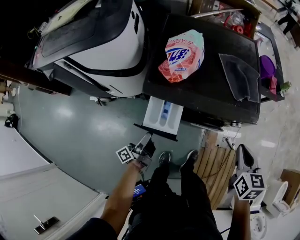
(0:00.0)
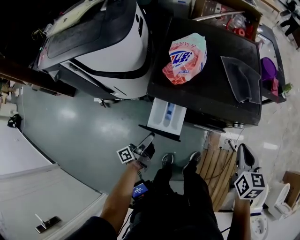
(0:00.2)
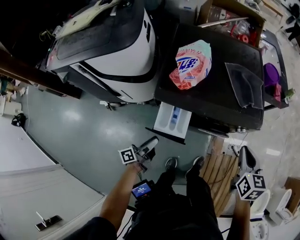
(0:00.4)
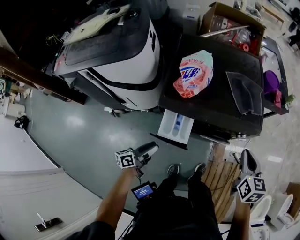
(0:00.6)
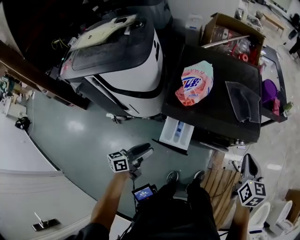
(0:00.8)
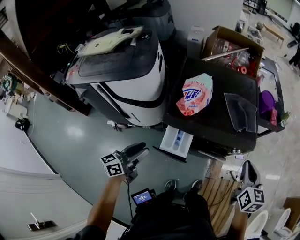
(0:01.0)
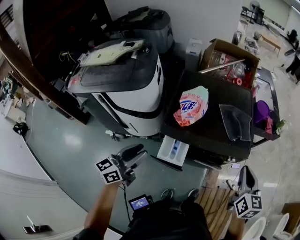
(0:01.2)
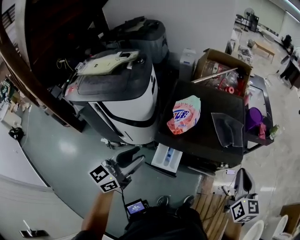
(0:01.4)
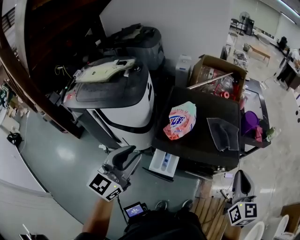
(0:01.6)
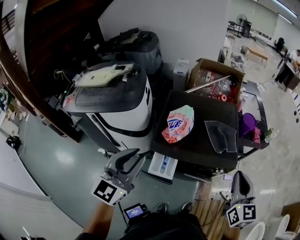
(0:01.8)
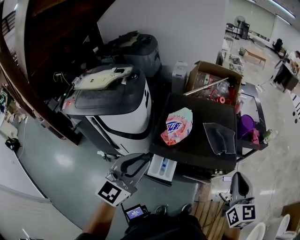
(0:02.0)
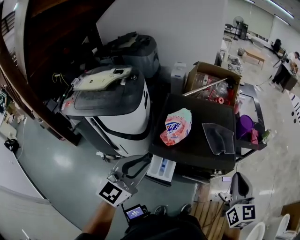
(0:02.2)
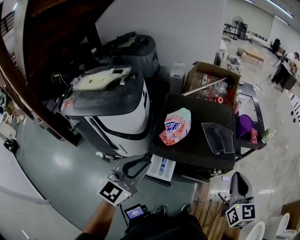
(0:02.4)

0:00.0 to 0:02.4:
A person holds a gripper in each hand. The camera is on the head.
0:00.0 to 0:01.2: The left gripper is displaced upward by some 30 cm, and rotates around the line of its fingers by some 60 degrees, clockwise from behind. Meanwhile the right gripper goes about 15 cm upward.
0:01.2 to 0:02.4: The left gripper moves upward and to the right, some 15 cm, and turns by about 40 degrees. The right gripper is displaced upward by about 10 cm.

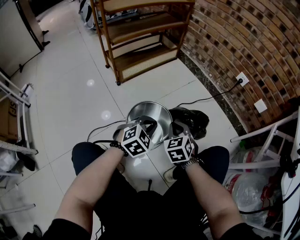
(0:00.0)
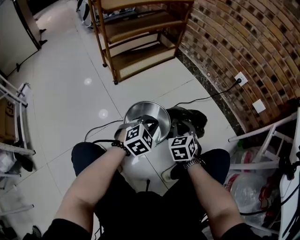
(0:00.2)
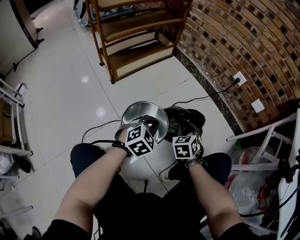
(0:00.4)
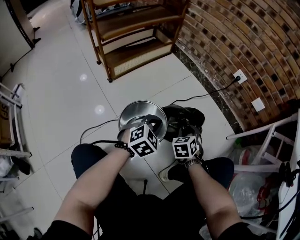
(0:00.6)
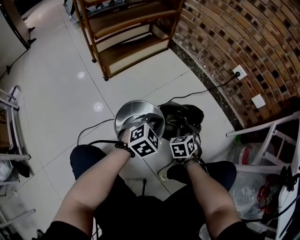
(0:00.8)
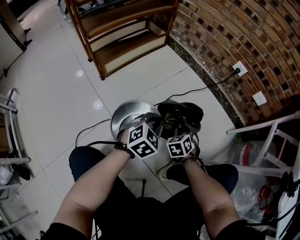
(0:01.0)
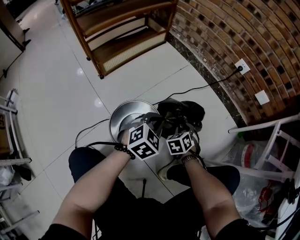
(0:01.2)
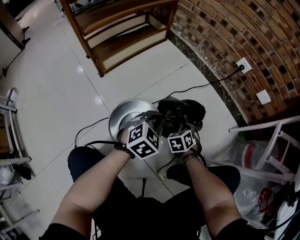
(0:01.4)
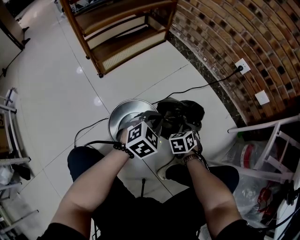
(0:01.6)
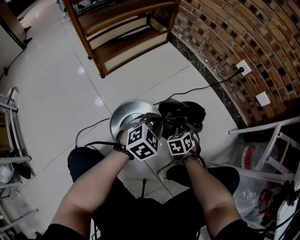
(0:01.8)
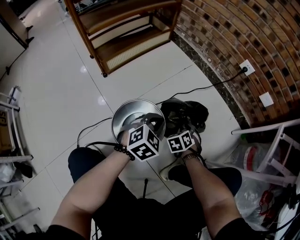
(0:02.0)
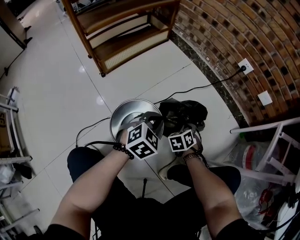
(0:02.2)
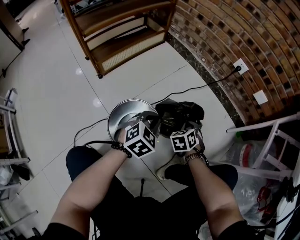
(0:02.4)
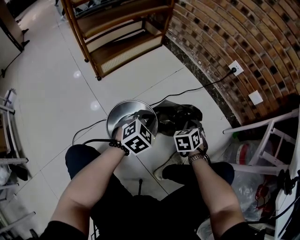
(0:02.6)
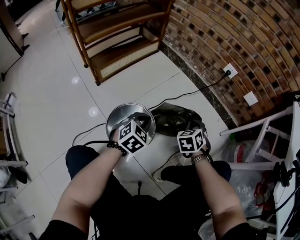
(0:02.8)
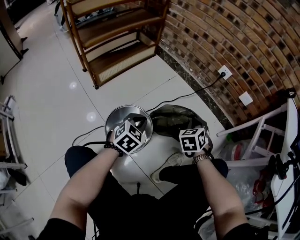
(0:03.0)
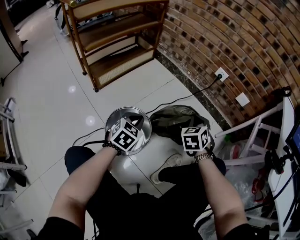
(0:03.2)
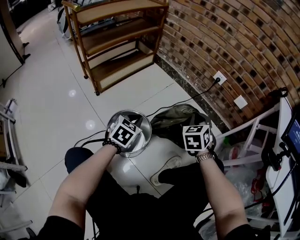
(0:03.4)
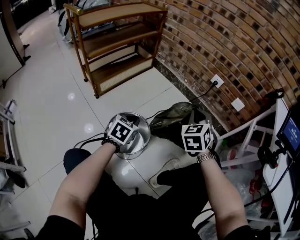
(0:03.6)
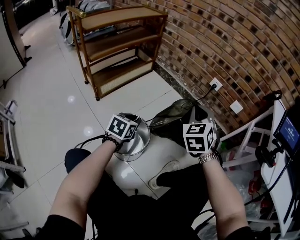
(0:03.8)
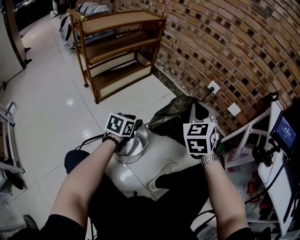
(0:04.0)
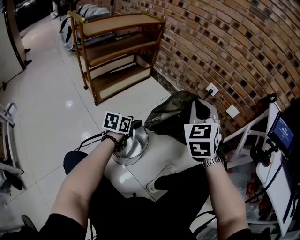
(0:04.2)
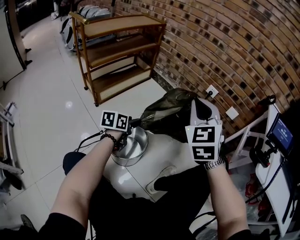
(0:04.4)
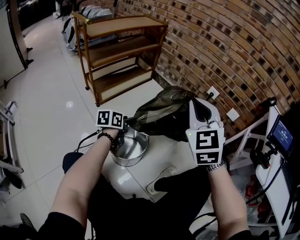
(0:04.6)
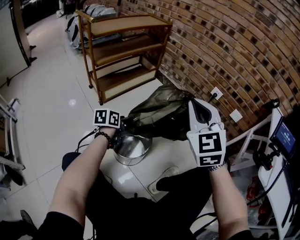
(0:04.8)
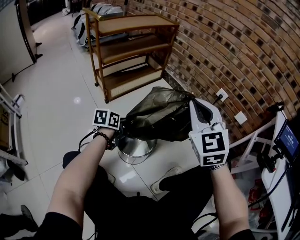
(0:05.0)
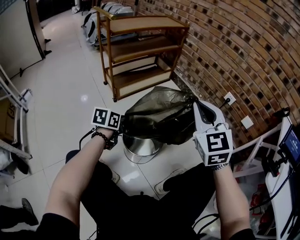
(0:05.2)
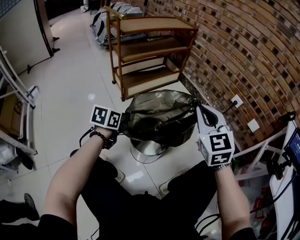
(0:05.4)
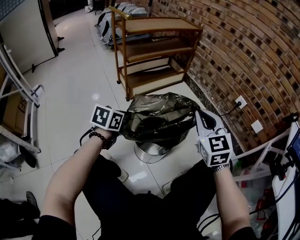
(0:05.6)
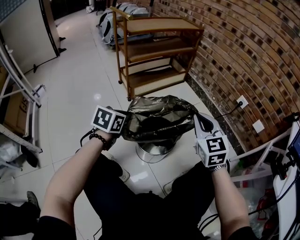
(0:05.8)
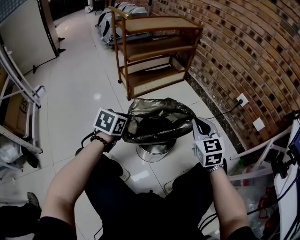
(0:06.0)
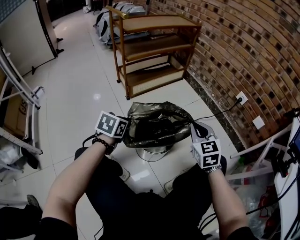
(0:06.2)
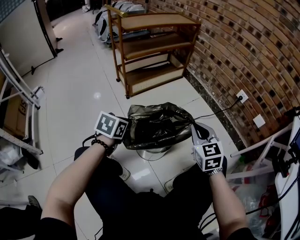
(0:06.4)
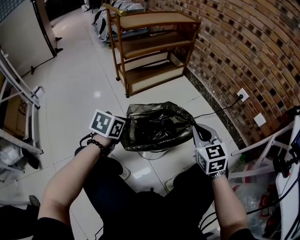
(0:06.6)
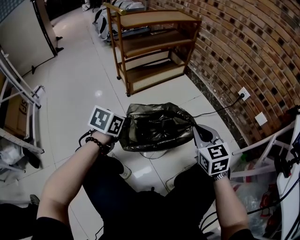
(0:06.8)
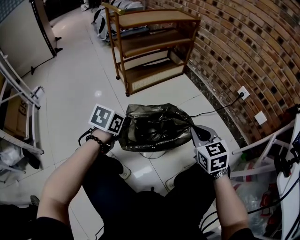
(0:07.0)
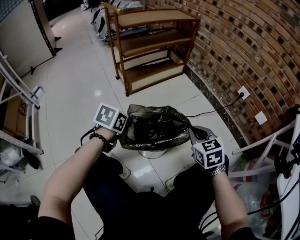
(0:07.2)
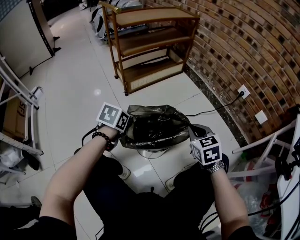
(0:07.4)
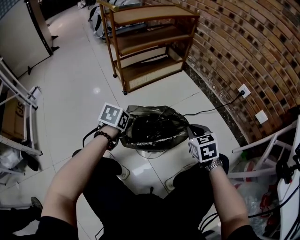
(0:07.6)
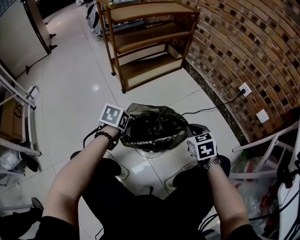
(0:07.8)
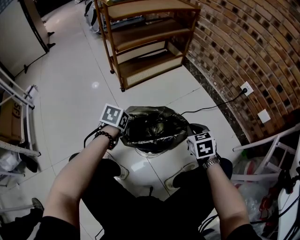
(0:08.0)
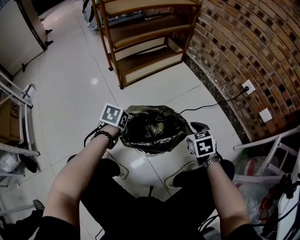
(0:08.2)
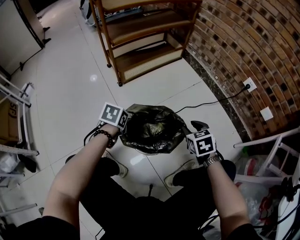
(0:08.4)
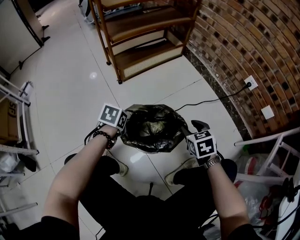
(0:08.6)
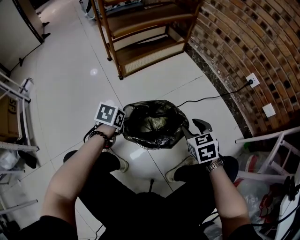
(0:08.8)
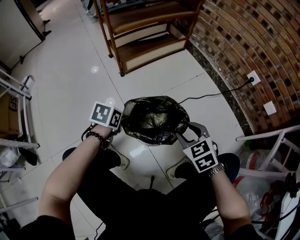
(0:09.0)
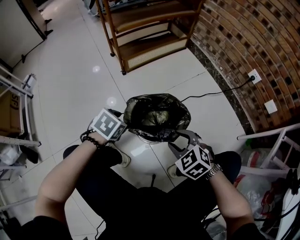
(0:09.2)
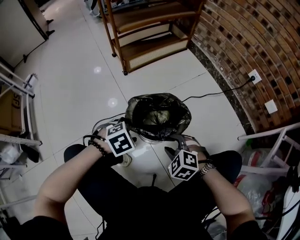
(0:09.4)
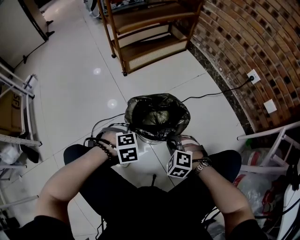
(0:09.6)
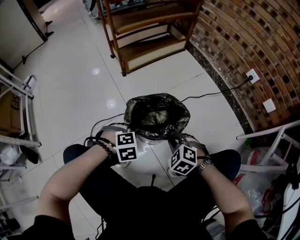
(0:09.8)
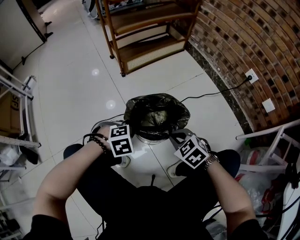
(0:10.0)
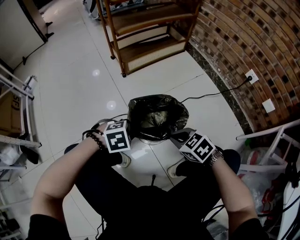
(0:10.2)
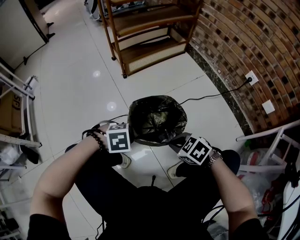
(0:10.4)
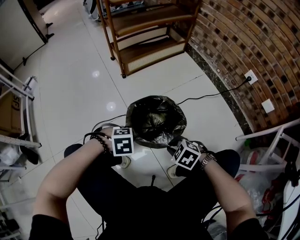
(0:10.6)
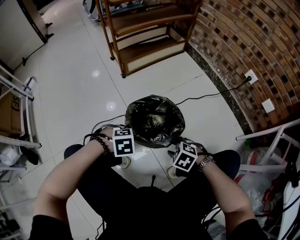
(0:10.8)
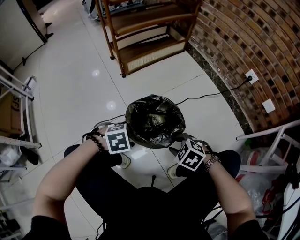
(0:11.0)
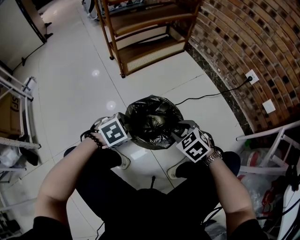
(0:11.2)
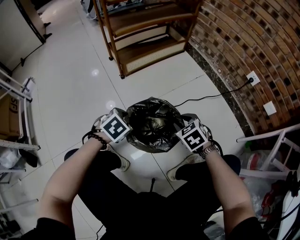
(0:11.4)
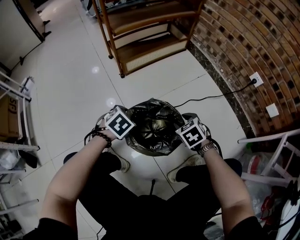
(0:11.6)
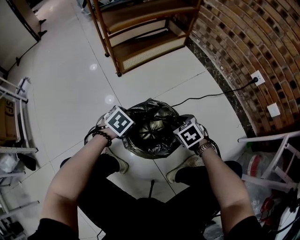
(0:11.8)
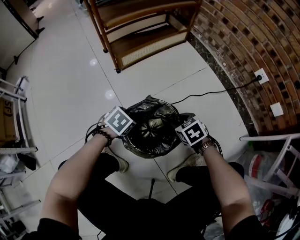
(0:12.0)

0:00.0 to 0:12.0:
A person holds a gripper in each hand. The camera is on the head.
0:00.0 to 0:01.6: The right gripper goes some 20 cm downward, forward and to the right, turns by some 30 degrees, and opens, then closes once more. The left gripper shifts about 10 cm forward.
0:01.6 to 0:03.0: The right gripper goes some 15 cm upward, and opens and closes again.
0:03.0 to 0:04.4: The right gripper goes about 30 cm upward, and changes its angle by roughly 30 degrees. Meanwhile the left gripper goes approximately 10 cm to the left and upward, twists about 50 degrees counterclockwise, seen from behind, and opens up.
0:04.4 to 0:06.0: The left gripper heads to the left and backward, covering some 20 cm, changes its angle by approximately 30 degrees, and closes, while the right gripper goes some 15 cm downward and to the left, and changes its angle by approximately 30 degrees.
0:06.0 to 0:07.6: The right gripper travels downward by approximately 10 cm, and swivels about 20 degrees, while the left gripper travels downward by roughly 5 cm.
0:07.6 to 0:09.0: The right gripper ends up about 5 cm from where it was, and opens up; the left gripper shifts roughly 5 cm downward, and opens its fingers.
0:09.0 to 0:10.4: The left gripper changes place by roughly 15 cm, rolls clockwise, seen from behind, by about 60 degrees, and closes its fingers; the right gripper shifts by approximately 10 cm, swivels some 30 degrees, and closes.
0:10.4 to 0:12.0: The right gripper moves up and down over roughly 10 cm, changing direction 2 times, swivels some 20 degrees, and opens. Meanwhile the left gripper moves up and down over some 10 cm, changing direction 2 times, changes its angle by approximately 40 degrees, and opens its fingers.

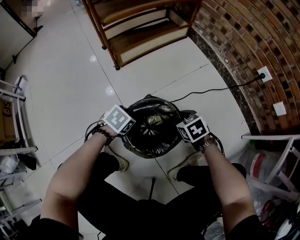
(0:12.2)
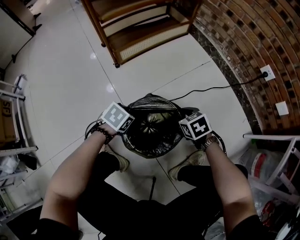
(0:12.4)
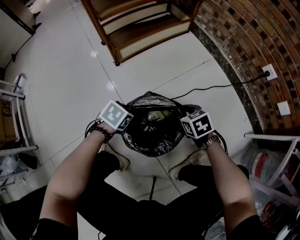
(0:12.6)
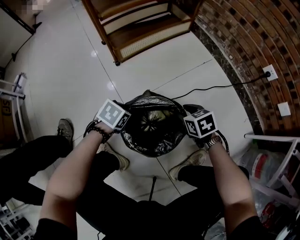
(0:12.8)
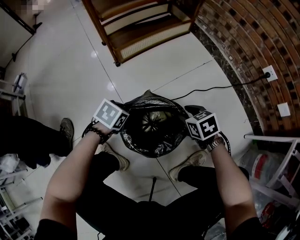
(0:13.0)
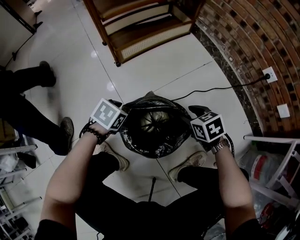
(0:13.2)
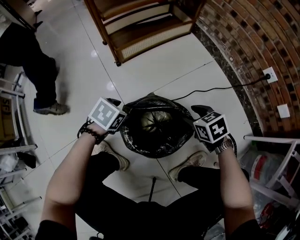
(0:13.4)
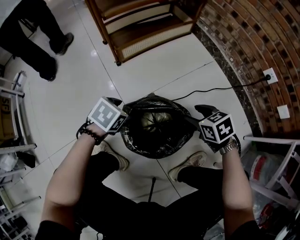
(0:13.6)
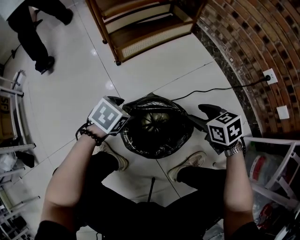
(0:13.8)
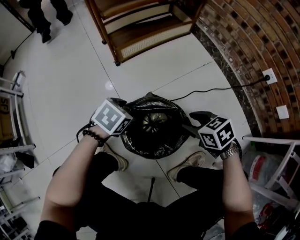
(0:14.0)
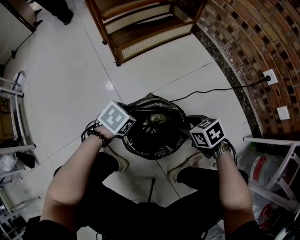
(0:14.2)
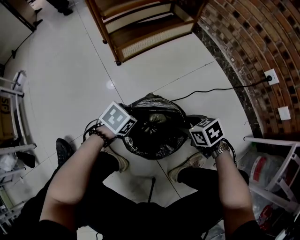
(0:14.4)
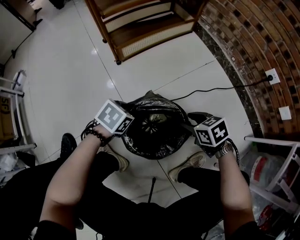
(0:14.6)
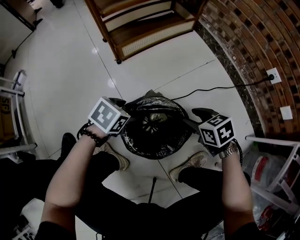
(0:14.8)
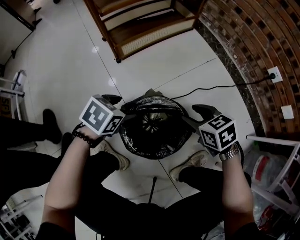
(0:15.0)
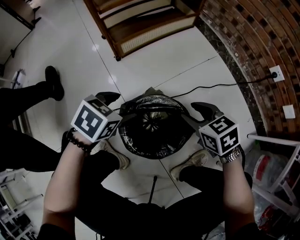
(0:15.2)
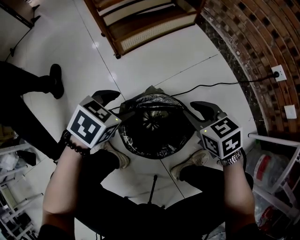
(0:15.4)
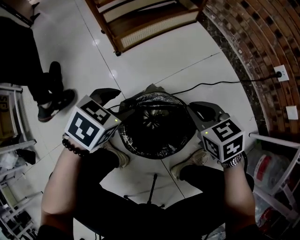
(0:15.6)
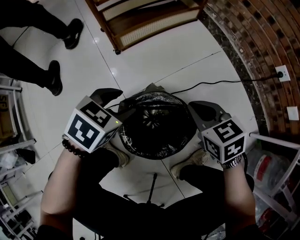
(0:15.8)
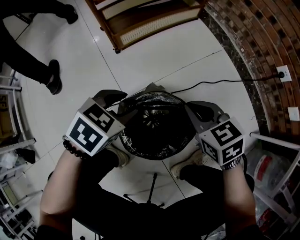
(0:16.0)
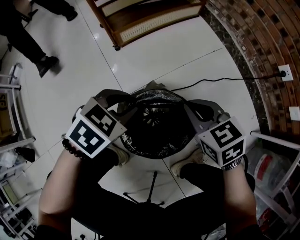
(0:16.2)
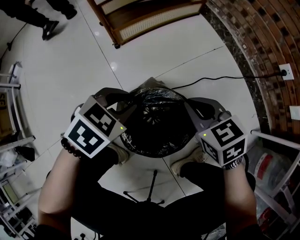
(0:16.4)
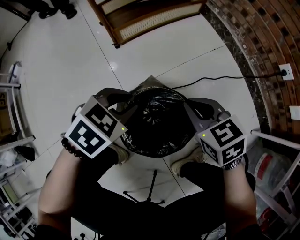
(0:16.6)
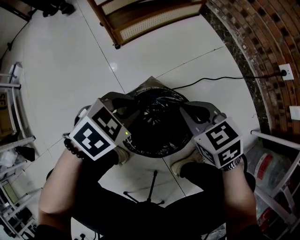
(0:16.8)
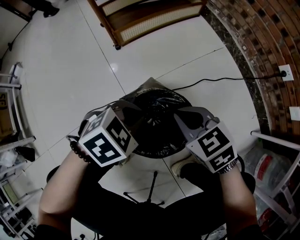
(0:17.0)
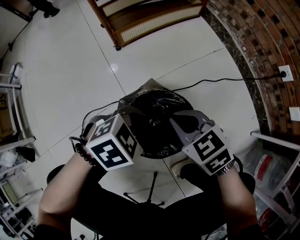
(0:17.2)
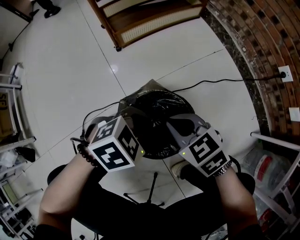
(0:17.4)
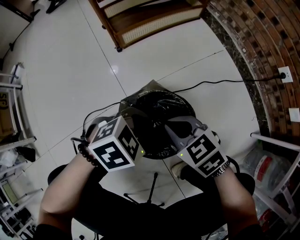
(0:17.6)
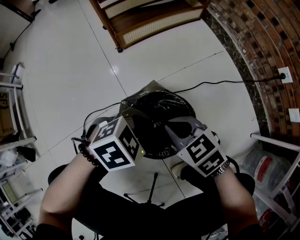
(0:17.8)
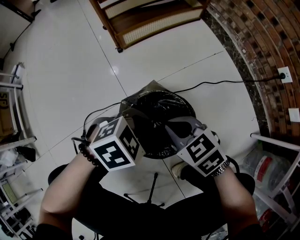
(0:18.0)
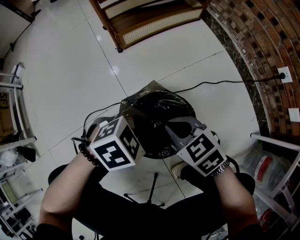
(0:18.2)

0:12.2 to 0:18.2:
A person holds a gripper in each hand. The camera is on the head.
0:12.2 to 0:13.8: The right gripper heads upward, covering approximately 10 cm; the left gripper shifts roughly 5 cm upward.
0:13.8 to 0:15.2: The right gripper moves approximately 5 cm downward and comes back.
0:15.2 to 0:16.6: The left gripper closes up, while the right gripper closes its fingers.
0:16.6 to 0:18.2: The left gripper moves about 10 cm; the right gripper ends up some 10 cm from where it was.

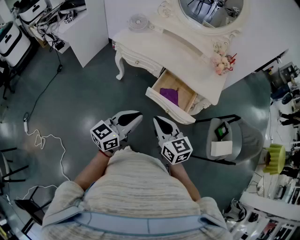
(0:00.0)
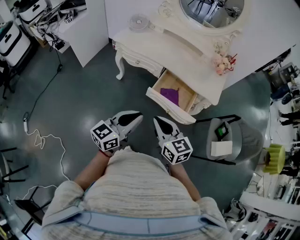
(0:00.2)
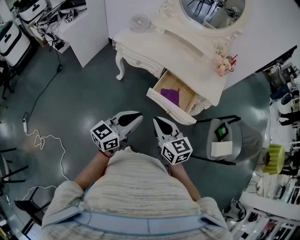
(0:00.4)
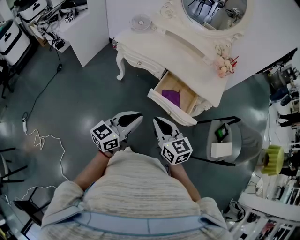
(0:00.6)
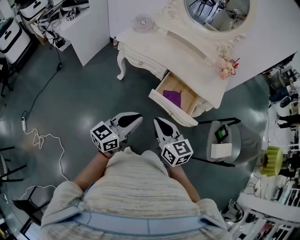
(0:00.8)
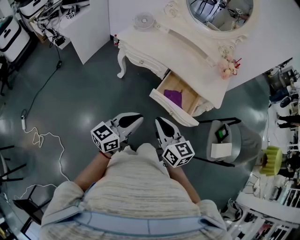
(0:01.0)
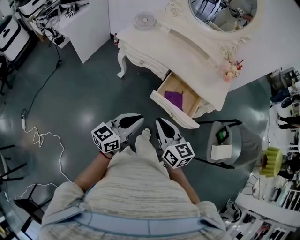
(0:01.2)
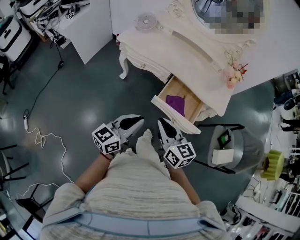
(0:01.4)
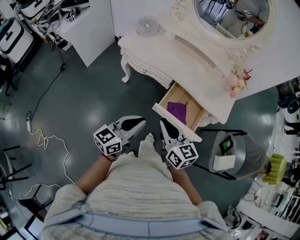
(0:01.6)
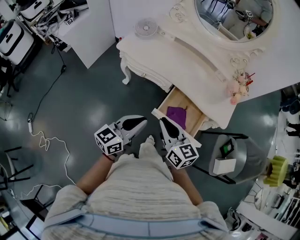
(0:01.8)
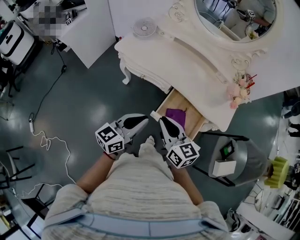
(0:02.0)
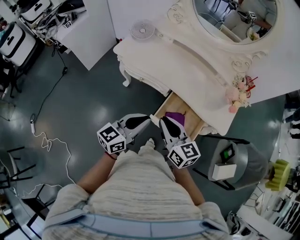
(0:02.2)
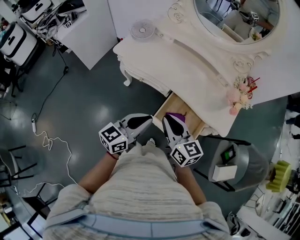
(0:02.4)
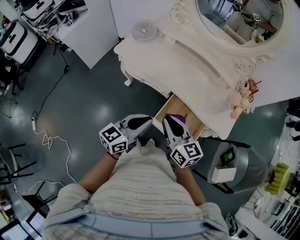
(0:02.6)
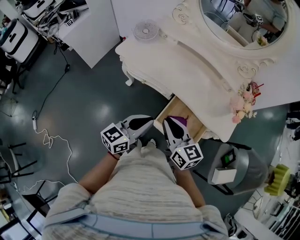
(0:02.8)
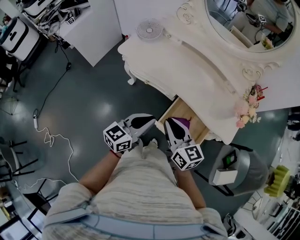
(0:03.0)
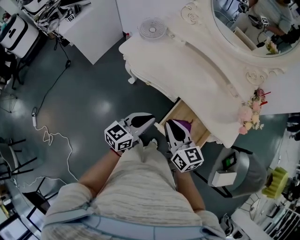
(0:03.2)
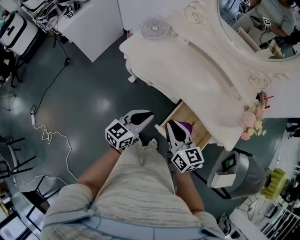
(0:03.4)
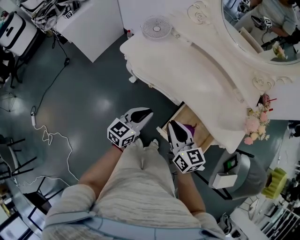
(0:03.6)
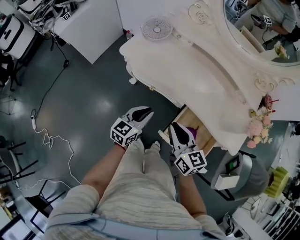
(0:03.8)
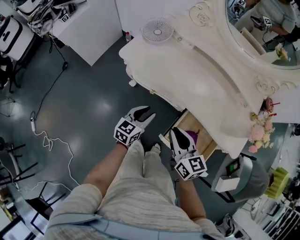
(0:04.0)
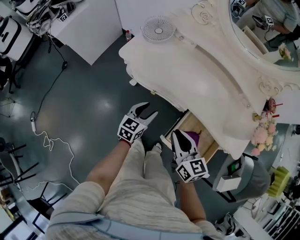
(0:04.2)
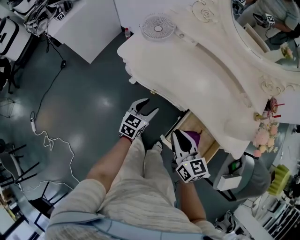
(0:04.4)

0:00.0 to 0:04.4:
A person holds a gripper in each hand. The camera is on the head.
0:00.0 to 0:01.4: The grippers both shift forward by some 5 cm.
0:01.4 to 0:03.0: Both grippers move forward, approximately 20 cm.
0:03.0 to 0:04.4: The right gripper is displaced downward and forward by approximately 10 cm, while the left gripper moves downward and forward, some 25 cm, turns by some 20 degrees, and opens up.
